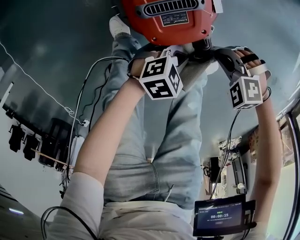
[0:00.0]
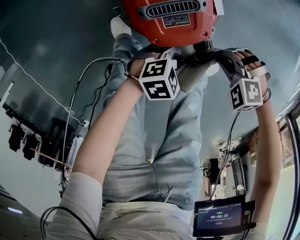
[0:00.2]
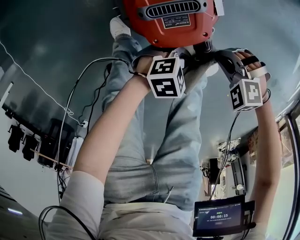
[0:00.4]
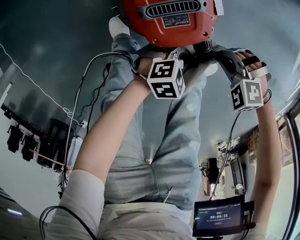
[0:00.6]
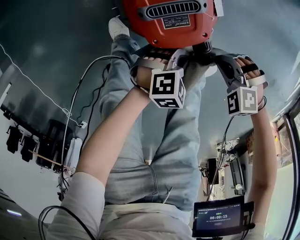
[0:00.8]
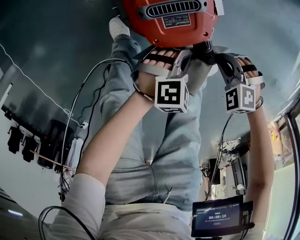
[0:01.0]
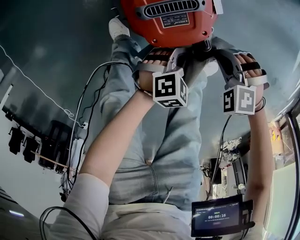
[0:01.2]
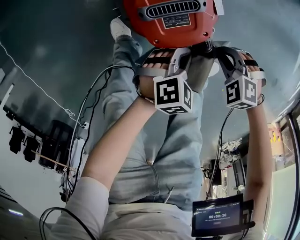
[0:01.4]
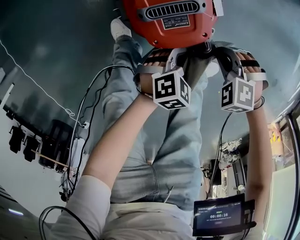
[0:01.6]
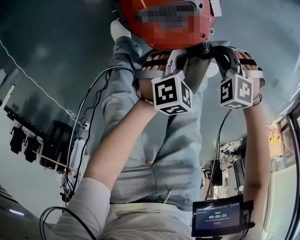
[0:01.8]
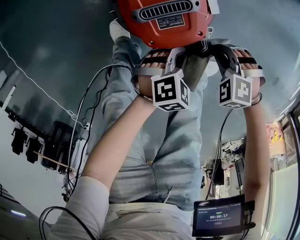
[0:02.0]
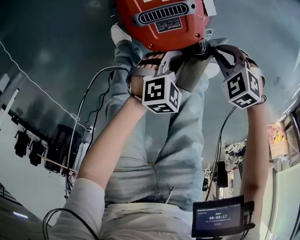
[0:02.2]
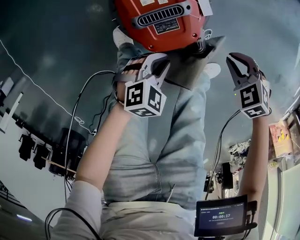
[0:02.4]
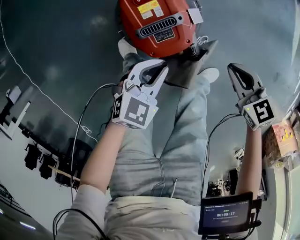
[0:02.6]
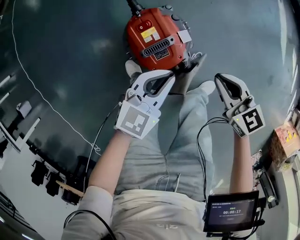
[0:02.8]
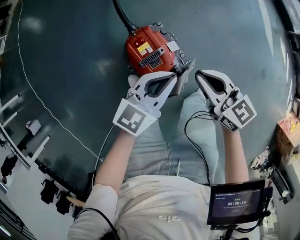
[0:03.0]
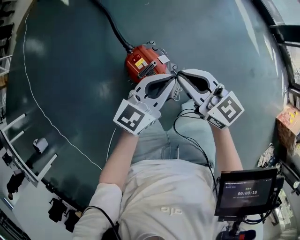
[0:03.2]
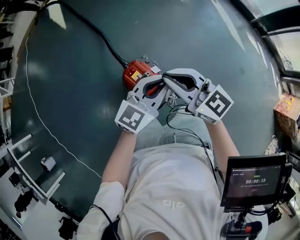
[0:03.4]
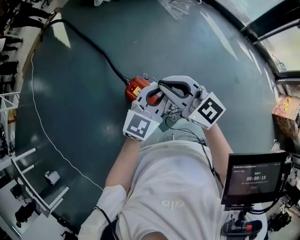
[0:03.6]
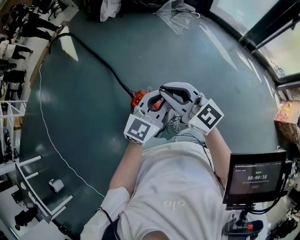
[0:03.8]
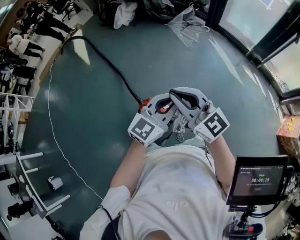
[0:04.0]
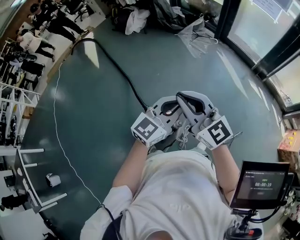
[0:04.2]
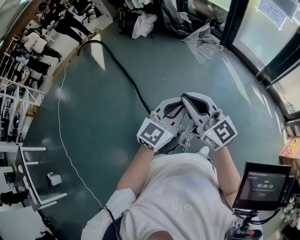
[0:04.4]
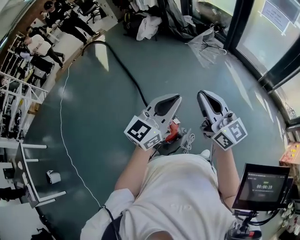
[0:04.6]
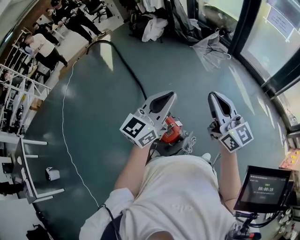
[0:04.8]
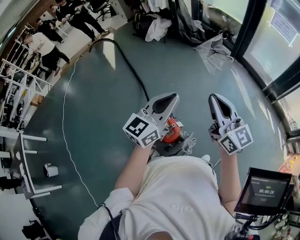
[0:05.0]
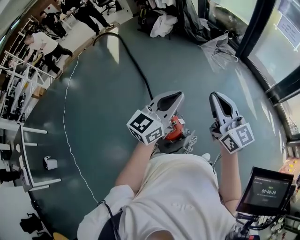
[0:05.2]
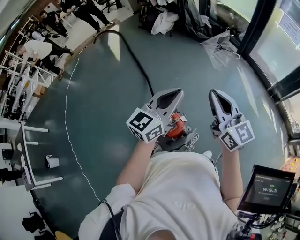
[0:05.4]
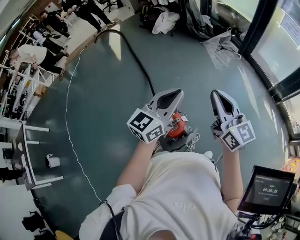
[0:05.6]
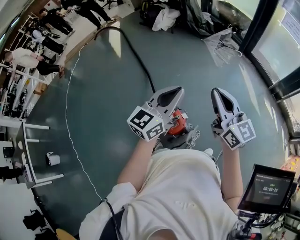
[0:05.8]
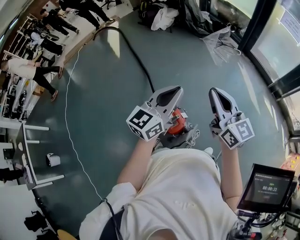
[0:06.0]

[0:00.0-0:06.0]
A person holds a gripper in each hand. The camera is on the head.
0:00.0 to 0:01.6: The left gripper rotates approximately 20 degrees.
0:01.6 to 0:03.0: The grippers both shift upward by approximately 35 cm. The right gripper tilts its fingers some 50 degrees upward. Meanwhile the left gripper points its fingers approximately 40 degrees further upward.
0:03.0 to 0:04.4: The two grippers go roughly 40 cm upward. The right gripper rotates some 40 degrees. Meanwhile the left gripper swivels approximately 30 degrees.
0:04.4 to 0:06.0: The left gripper heads to the left, covering roughly 10 cm.

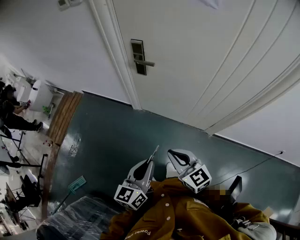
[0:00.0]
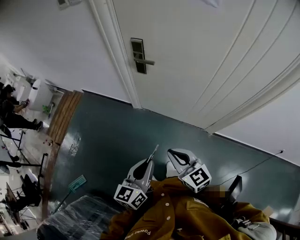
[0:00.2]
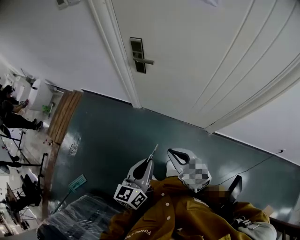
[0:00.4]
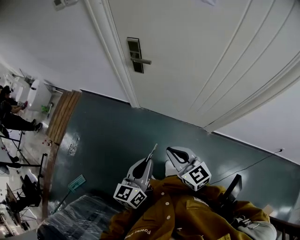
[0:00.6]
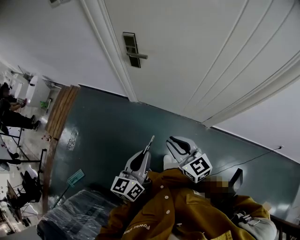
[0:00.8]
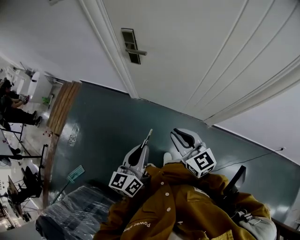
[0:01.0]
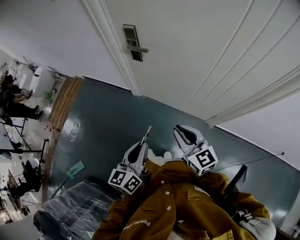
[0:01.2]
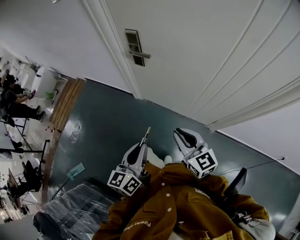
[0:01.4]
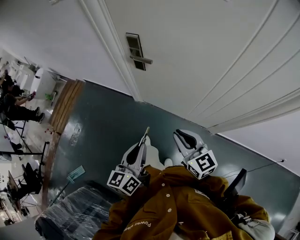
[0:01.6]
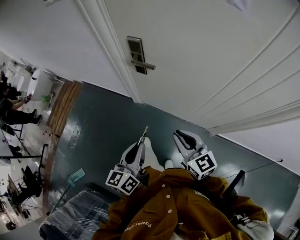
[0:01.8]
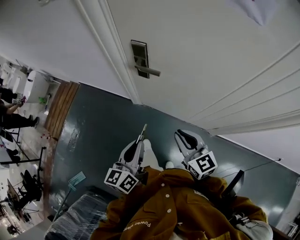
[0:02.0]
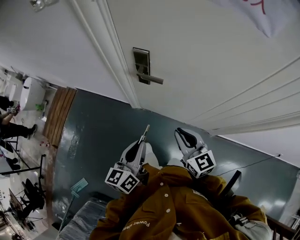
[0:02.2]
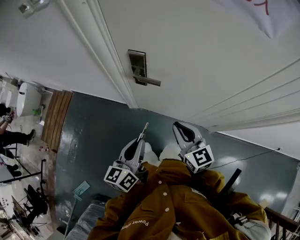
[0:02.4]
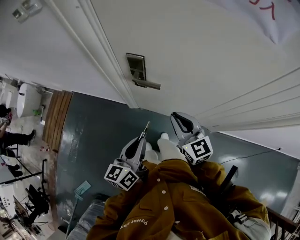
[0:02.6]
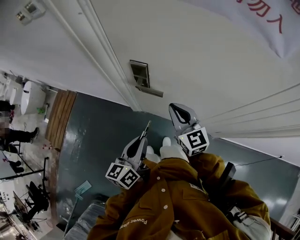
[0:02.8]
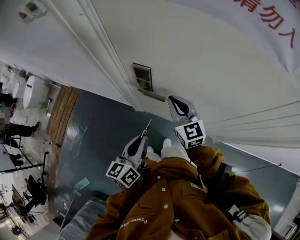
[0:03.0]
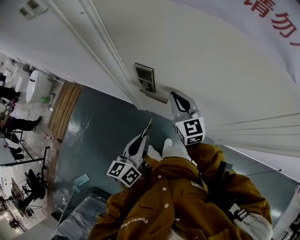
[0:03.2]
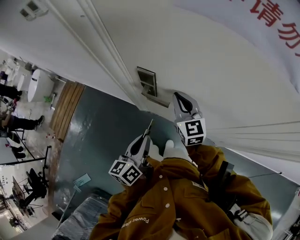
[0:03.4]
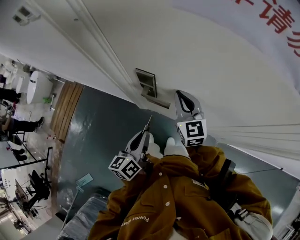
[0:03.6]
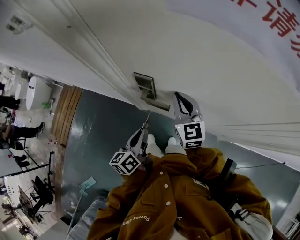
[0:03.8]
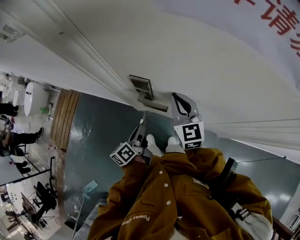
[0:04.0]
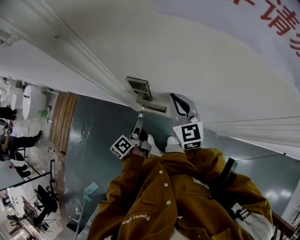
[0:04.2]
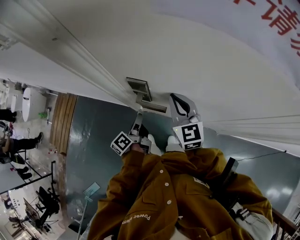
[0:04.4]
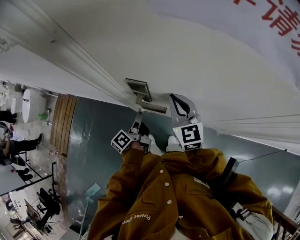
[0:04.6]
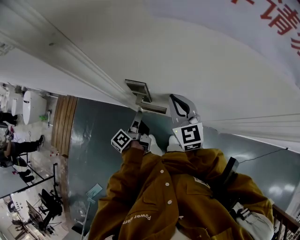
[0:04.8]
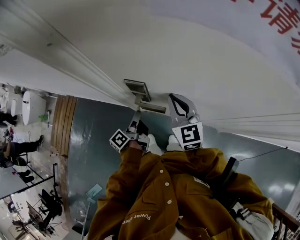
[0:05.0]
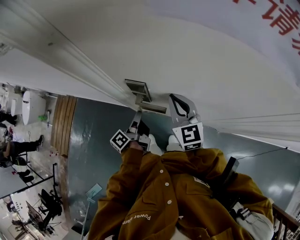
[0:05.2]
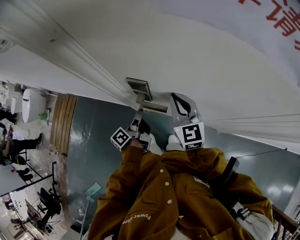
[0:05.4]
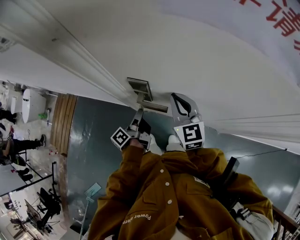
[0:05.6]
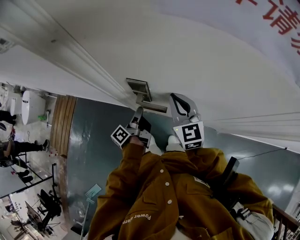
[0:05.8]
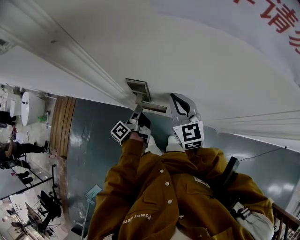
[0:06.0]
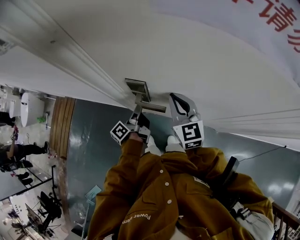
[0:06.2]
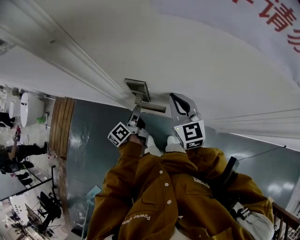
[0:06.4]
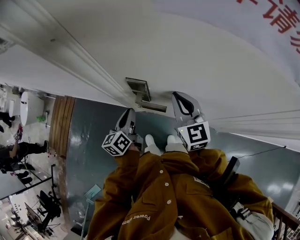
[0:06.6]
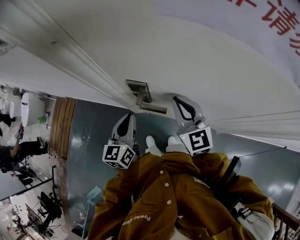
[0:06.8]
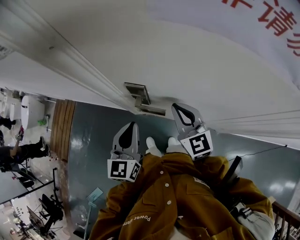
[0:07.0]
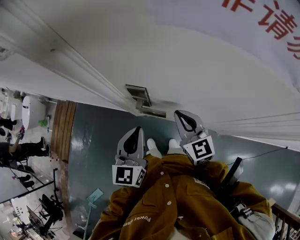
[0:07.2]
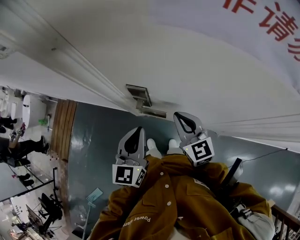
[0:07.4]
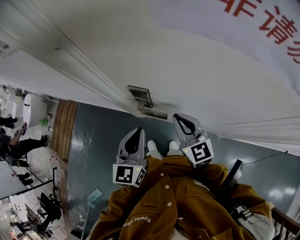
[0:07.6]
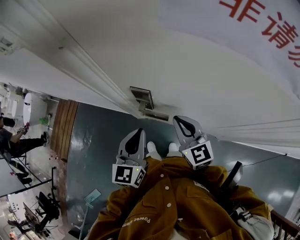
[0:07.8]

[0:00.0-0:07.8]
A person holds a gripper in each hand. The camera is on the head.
0:00.0 to 0:01.6: The right gripper is displaced forward and to the right by roughly 15 cm. Meanwhile the left gripper travels forward by some 10 cm.
0:01.6 to 0:03.2: Both grippers travel together forward, approximately 30 cm.
0:03.2 to 0:04.6: The left gripper travels forward and downward by about 20 cm, and twists some 40 degrees counterclockwise, seen from behind.
0:04.6 to 0:06.2: There are only small adjustments of the grippers.
0:06.2 to 0:07.8: The left gripper travels upward and backward by about 20 cm, and rolls clockwise, seen from behind, by roughly 80 degrees; the right gripper shifts about 5 cm backward.

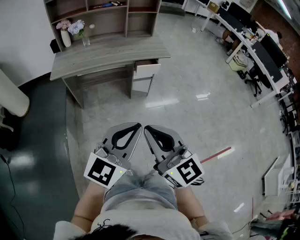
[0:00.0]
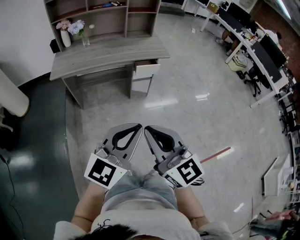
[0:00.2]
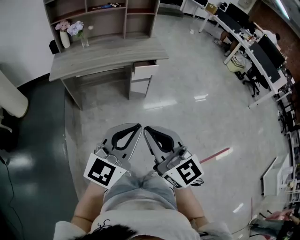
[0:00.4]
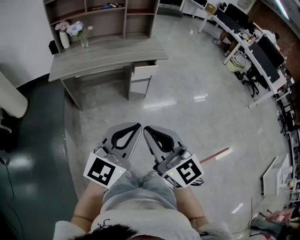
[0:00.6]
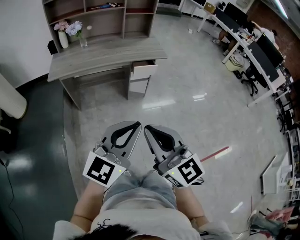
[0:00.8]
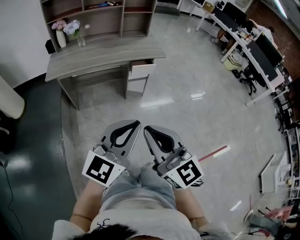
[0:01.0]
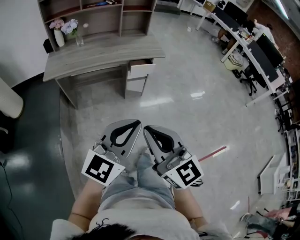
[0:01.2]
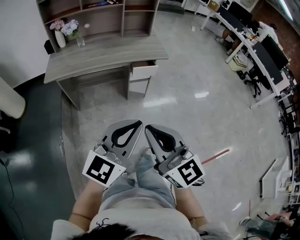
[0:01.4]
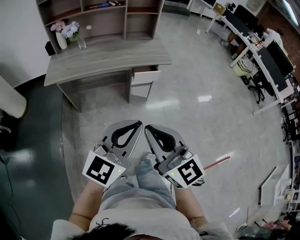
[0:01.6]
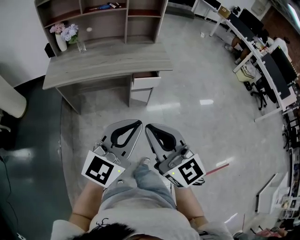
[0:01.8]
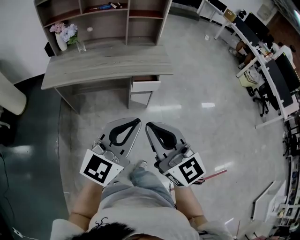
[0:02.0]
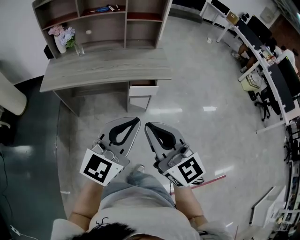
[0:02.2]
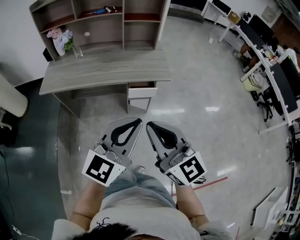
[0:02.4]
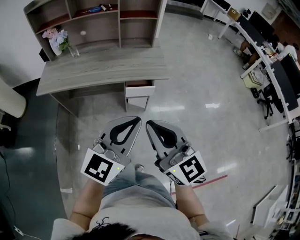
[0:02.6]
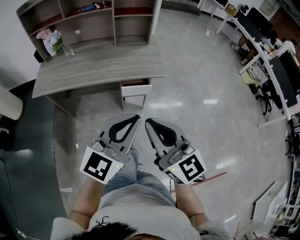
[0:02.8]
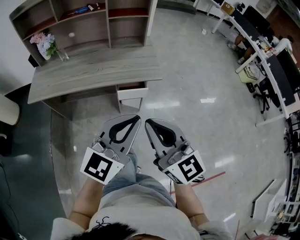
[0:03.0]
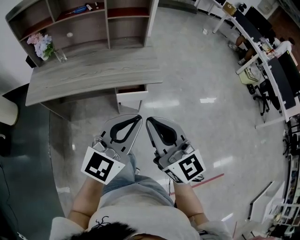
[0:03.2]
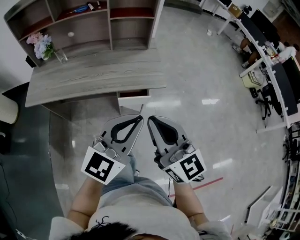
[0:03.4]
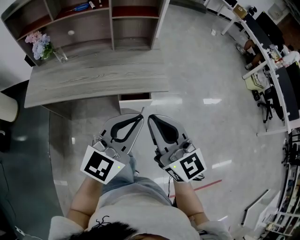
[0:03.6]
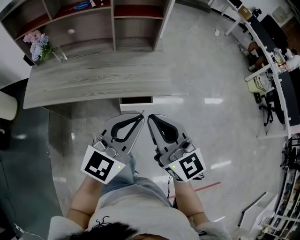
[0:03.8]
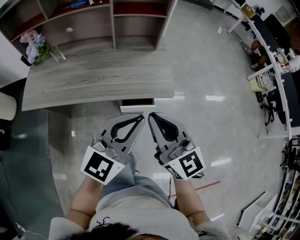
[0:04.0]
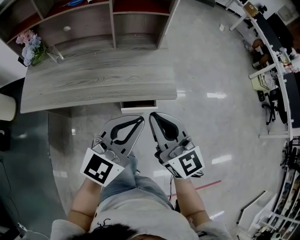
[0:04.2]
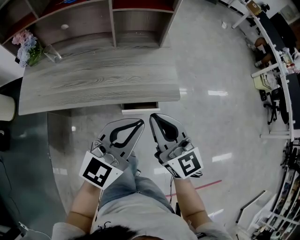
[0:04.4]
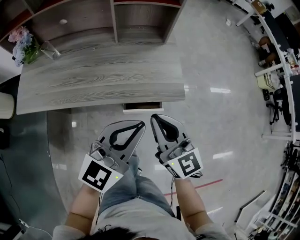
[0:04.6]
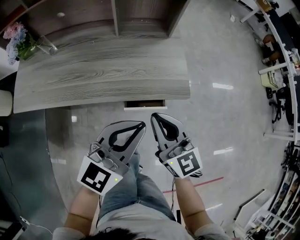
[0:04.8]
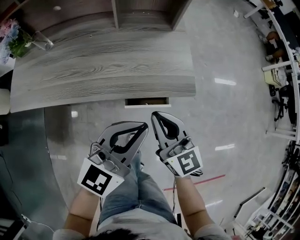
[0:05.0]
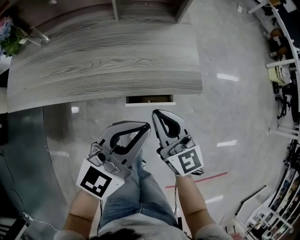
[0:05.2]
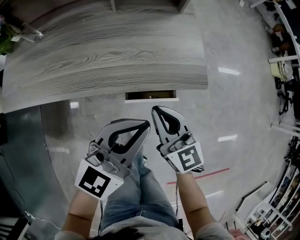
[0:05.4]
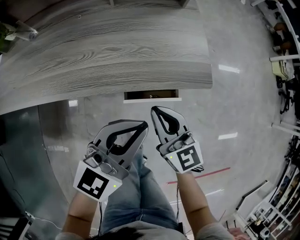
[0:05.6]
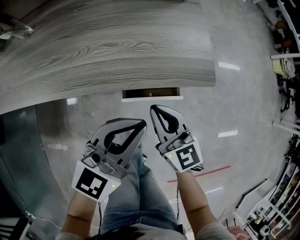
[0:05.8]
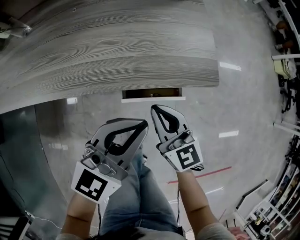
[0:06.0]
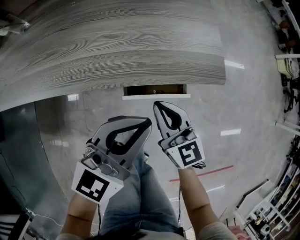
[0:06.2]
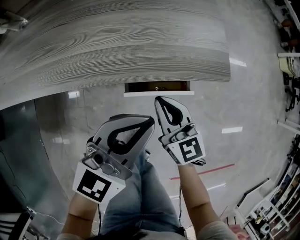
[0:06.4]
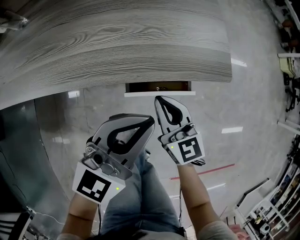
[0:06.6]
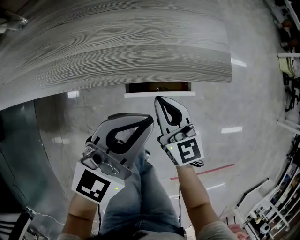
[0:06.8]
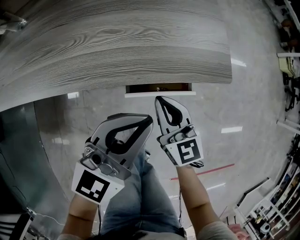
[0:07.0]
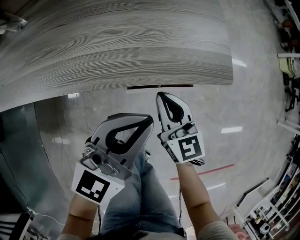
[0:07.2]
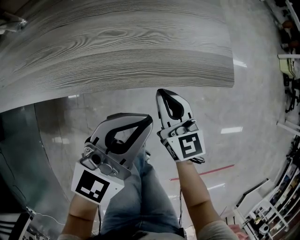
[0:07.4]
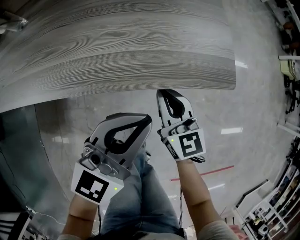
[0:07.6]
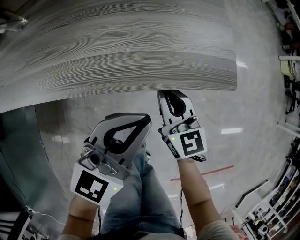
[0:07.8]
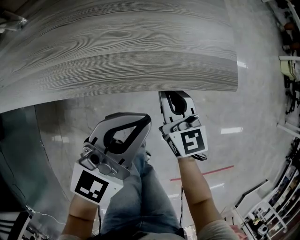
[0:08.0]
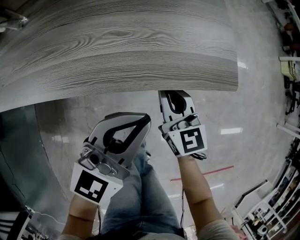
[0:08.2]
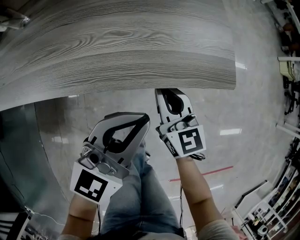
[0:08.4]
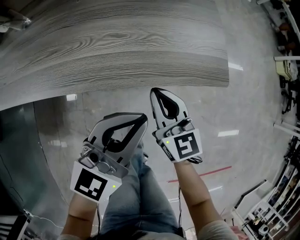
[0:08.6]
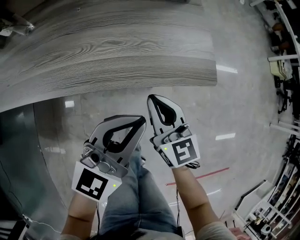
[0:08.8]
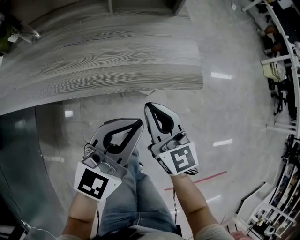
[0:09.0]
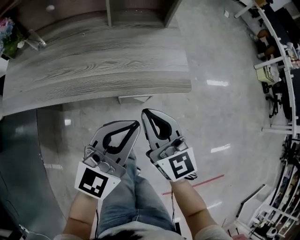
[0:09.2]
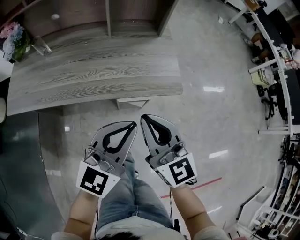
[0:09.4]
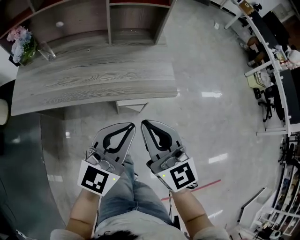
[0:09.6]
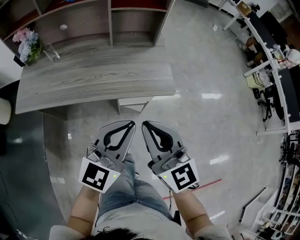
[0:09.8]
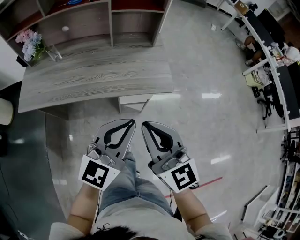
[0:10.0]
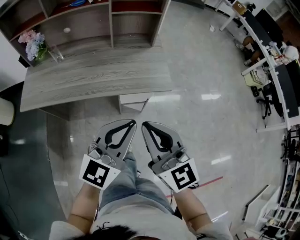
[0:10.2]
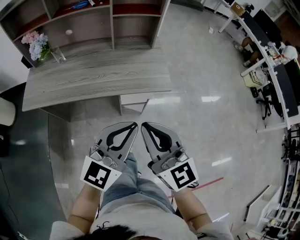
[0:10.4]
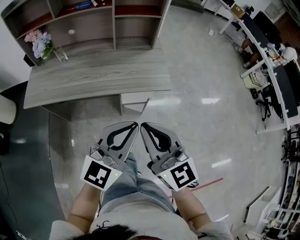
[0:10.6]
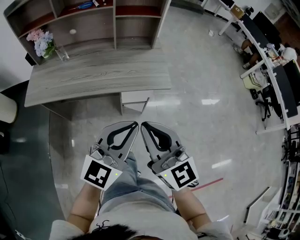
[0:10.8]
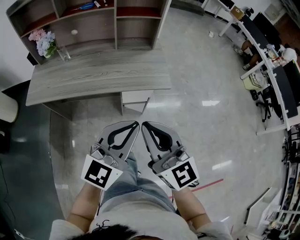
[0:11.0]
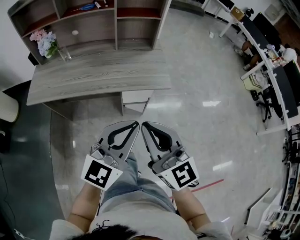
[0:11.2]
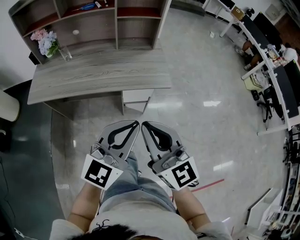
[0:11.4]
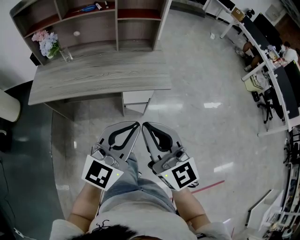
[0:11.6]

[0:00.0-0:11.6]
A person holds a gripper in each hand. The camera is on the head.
0:00.0 to 0:01.4: Both grippers move forward, about 5 cm.
0:01.4 to 0:02.8: The grippers both shift forward and to the right by roughly 25 cm.
0:02.8 to 0:04.4: Both grippers travel together forward, roughly 25 cm.
0:04.4 to 0:05.8: The two grippers go roughly 20 cm downward.
0:05.8 to 0:07.2: The right gripper shifts roughly 5 cm downward.
0:07.2 to 0:08.8: The right gripper heads upward, covering some 5 cm.
0:08.8 to 0:10.2: The right gripper is displaced upward and backward by about 35 cm, while the left gripper goes approximately 25 cm upward and backward.
0:10.2 to 0:11.6: The two grippers go about 10 cm backward.
